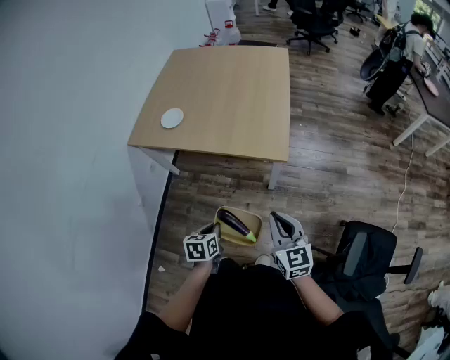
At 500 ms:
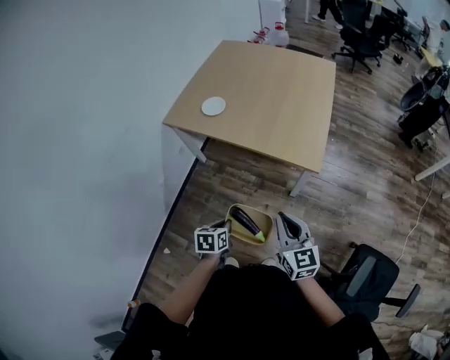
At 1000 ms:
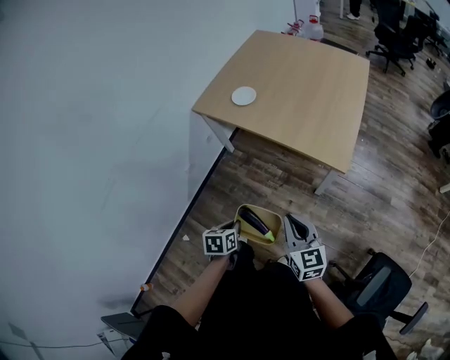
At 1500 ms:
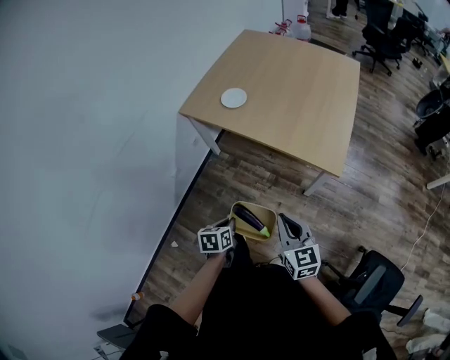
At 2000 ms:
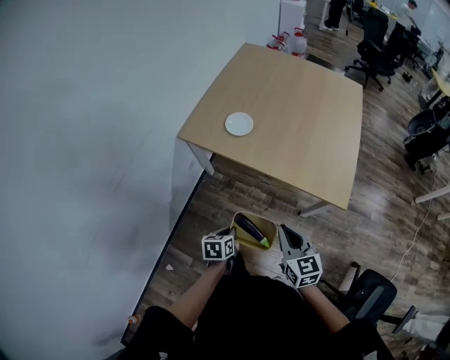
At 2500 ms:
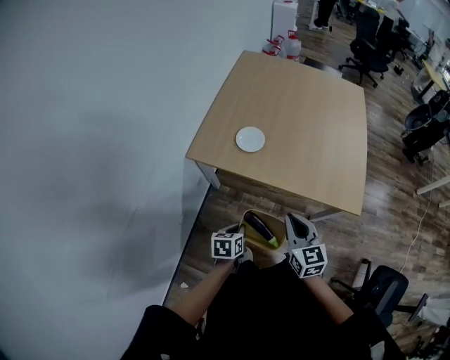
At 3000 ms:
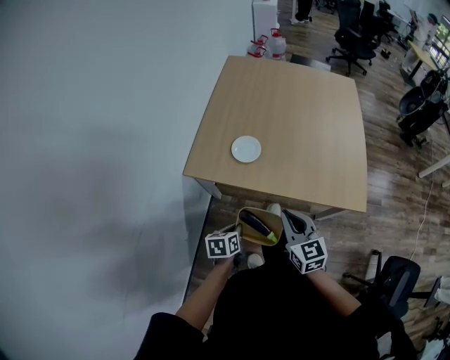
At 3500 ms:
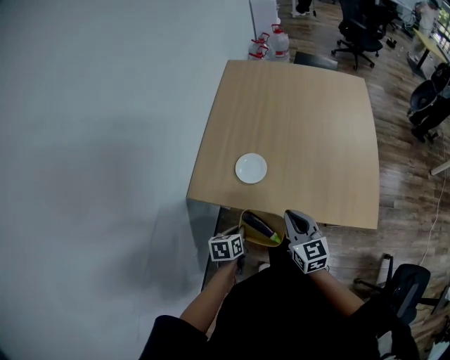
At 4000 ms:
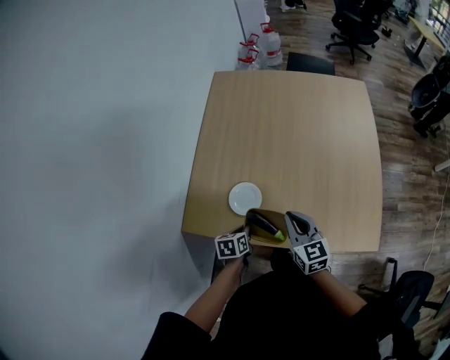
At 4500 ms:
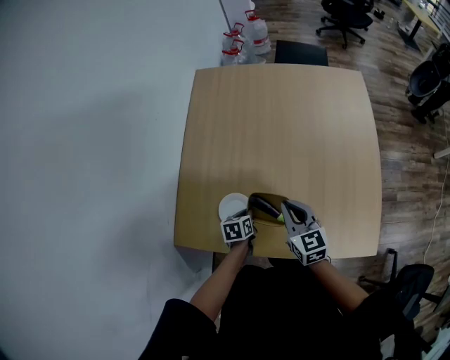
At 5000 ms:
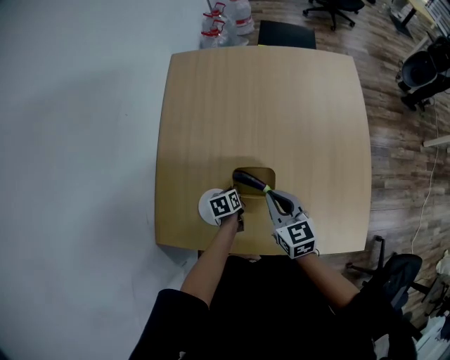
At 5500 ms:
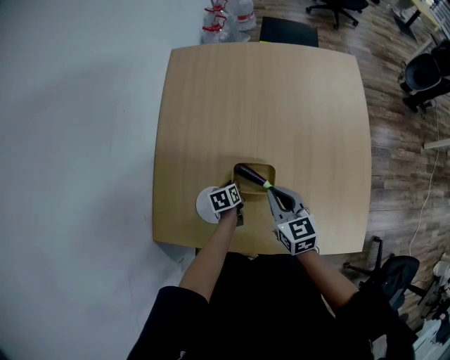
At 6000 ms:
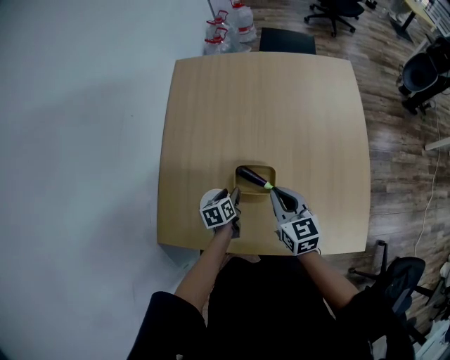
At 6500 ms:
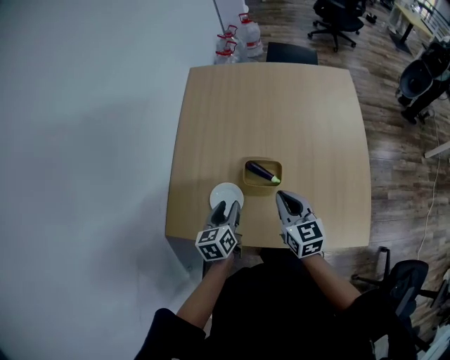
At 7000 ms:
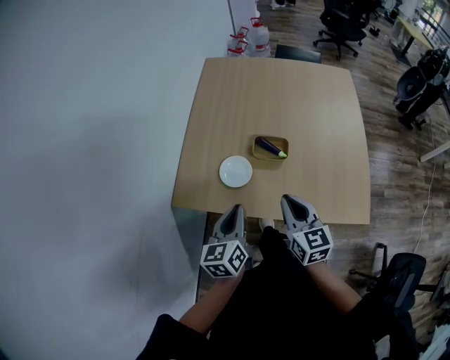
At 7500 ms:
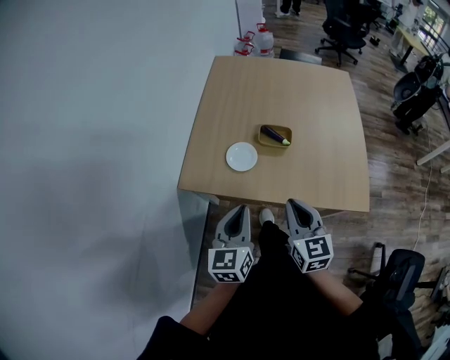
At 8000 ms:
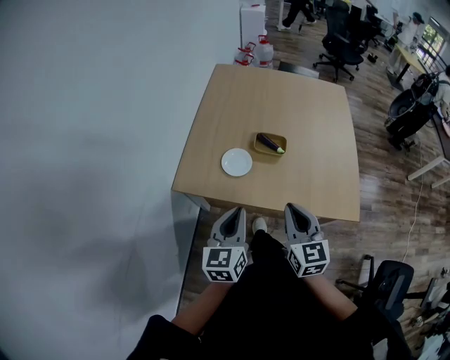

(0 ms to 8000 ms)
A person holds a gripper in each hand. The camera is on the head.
0 ms - 2000 ms: The grippers both shift to the left and forward by approximately 25 cm.
2000 ms - 4000 ms: Both grippers are carried forward, roughly 40 cm.
4000 ms - 6000 ms: The right gripper goes some 15 cm forward and to the right. The left gripper is displaced forward by about 20 cm, and opens its fingers.
6000 ms - 8000 ms: The left gripper is displaced backward and upward by about 40 cm, angles its fingers upward, by approximately 40 degrees, and closes up. Meanwhile the right gripper shifts about 30 cm backward.

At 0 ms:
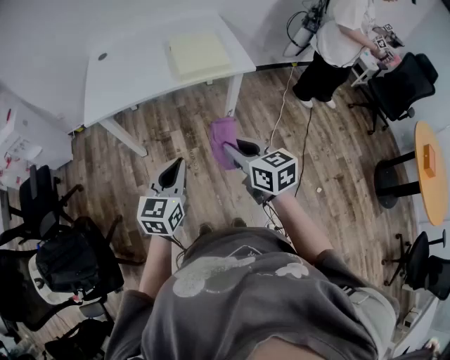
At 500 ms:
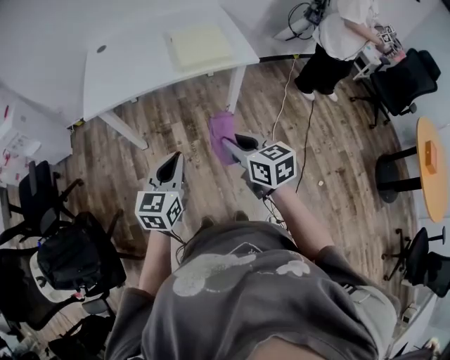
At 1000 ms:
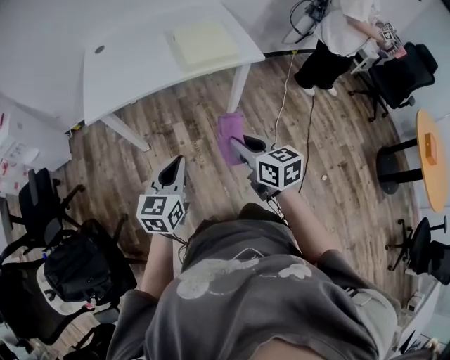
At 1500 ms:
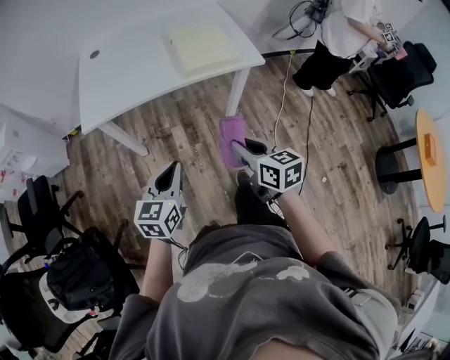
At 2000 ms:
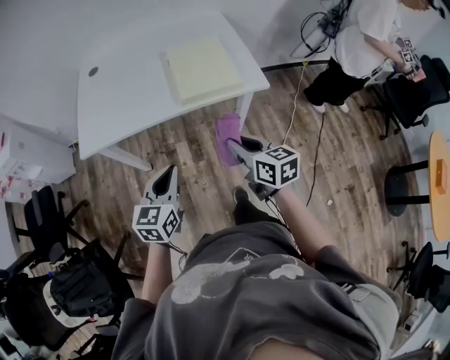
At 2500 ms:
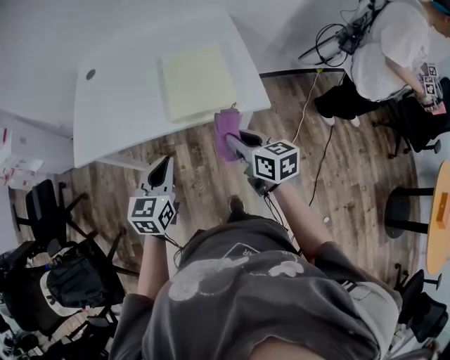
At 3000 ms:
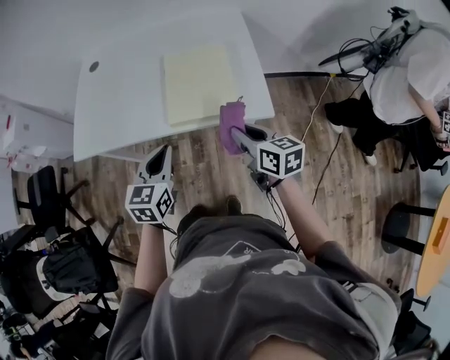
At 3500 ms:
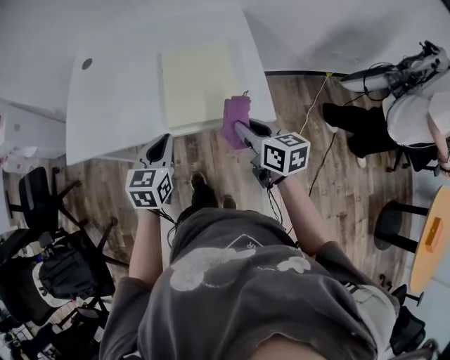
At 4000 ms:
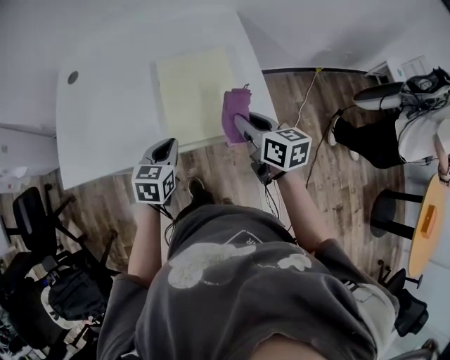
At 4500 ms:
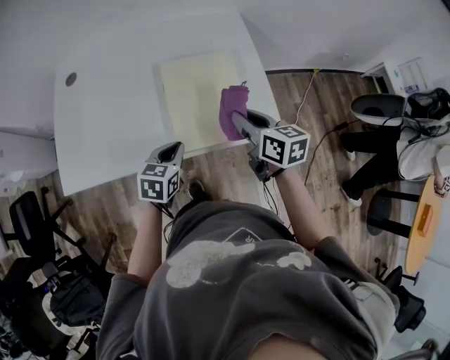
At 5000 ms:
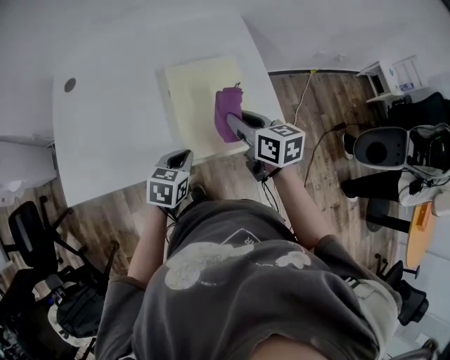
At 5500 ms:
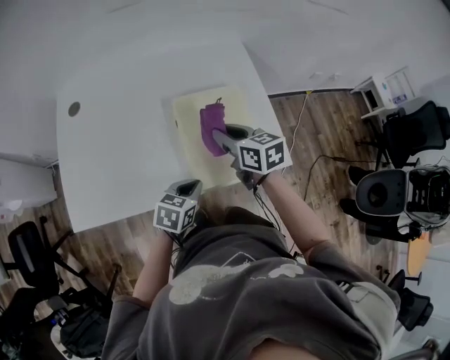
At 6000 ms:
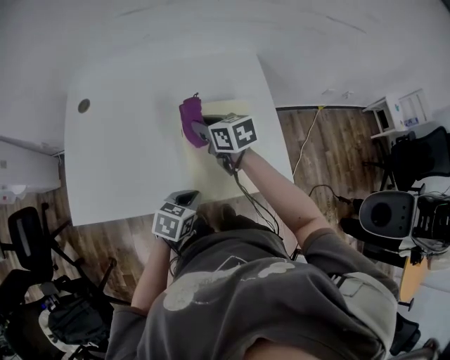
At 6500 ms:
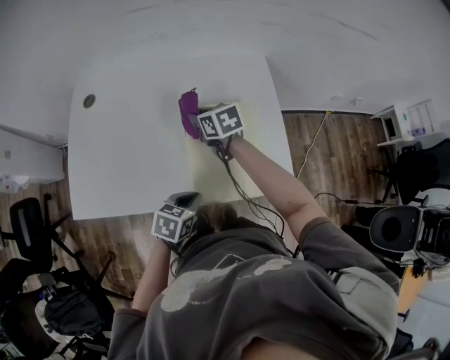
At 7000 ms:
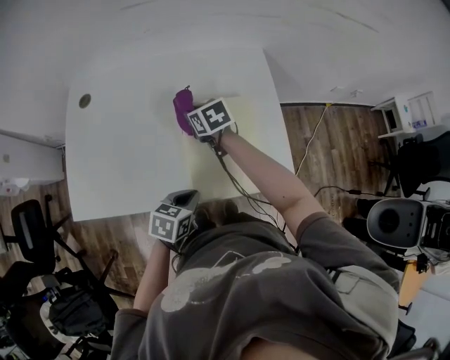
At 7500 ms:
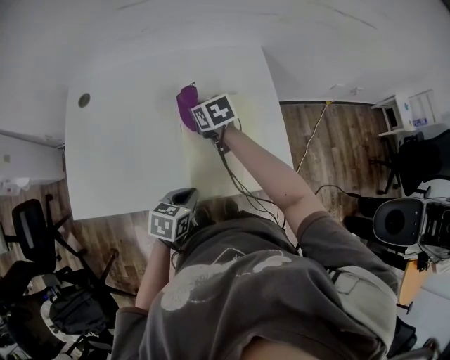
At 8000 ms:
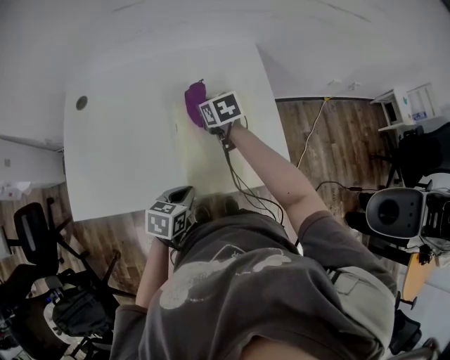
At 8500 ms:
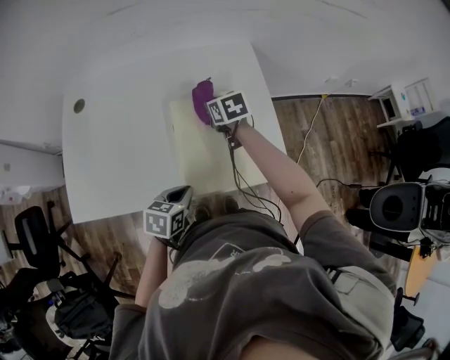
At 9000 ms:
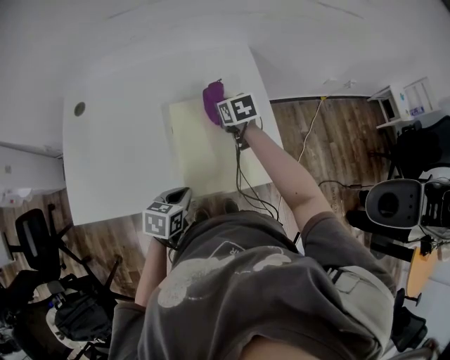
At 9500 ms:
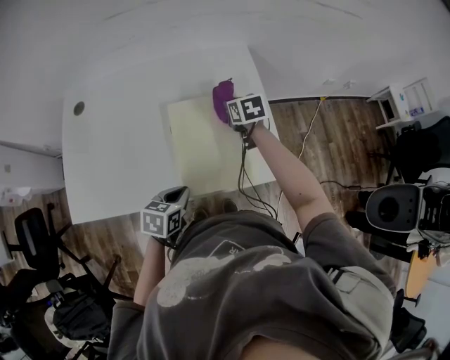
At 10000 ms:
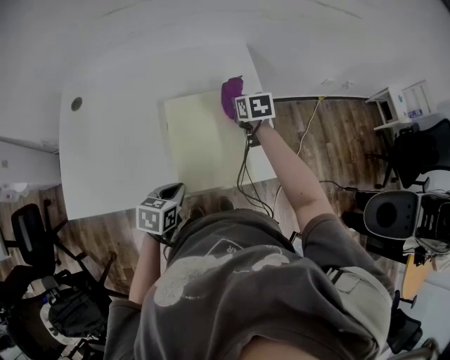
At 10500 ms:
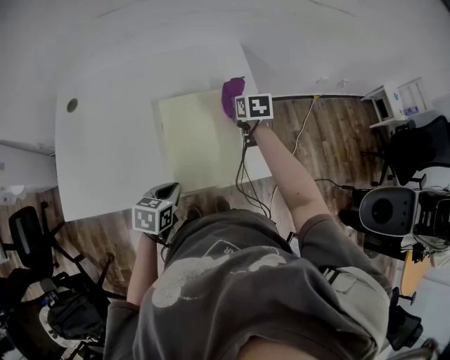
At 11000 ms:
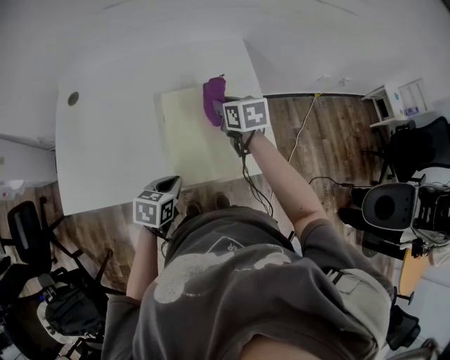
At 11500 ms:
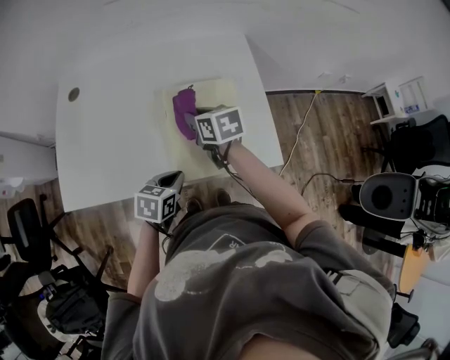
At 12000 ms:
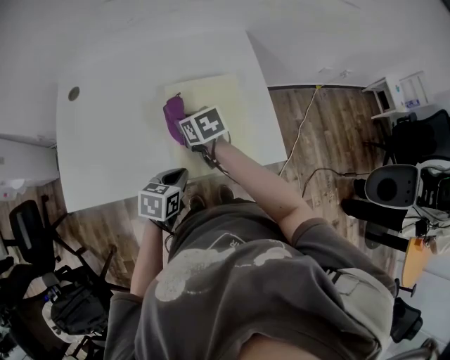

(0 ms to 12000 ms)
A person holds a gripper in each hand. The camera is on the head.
0 ms - 2000 ms: The grippers both shift forward by roughly 20 cm.
2000 ms - 4000 ms: The right gripper travels forward and to the right by roughly 30 cm; the left gripper is displaced forward by approximately 30 cm.
4000 ms - 6000 ms: The left gripper rotates roughly 20 degrees, while the right gripper goes roughly 25 cm to the left and forward.
6000 ms - 8000 ms: The right gripper moves downward and forward, approximately 10 cm.
8000 ms - 10000 ms: The right gripper heads to the right, covering some 15 cm.
10000 ms - 12000 ms: The right gripper shifts about 25 cm to the left and backward, and turns by some 20 degrees.

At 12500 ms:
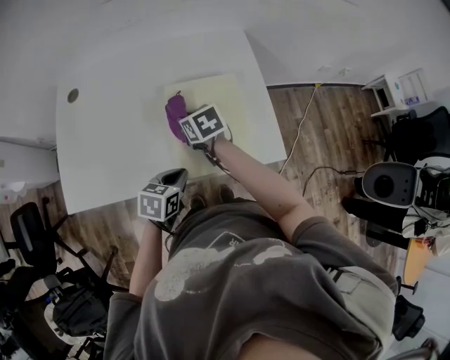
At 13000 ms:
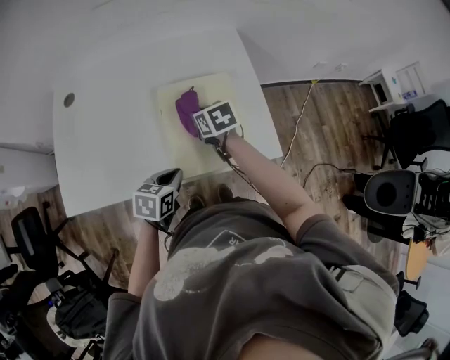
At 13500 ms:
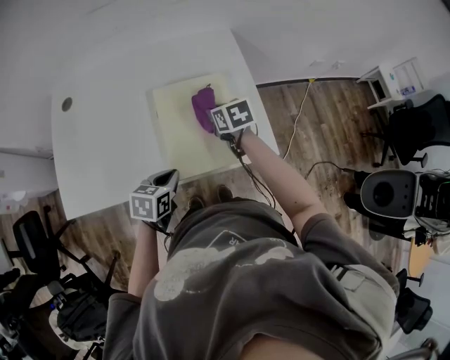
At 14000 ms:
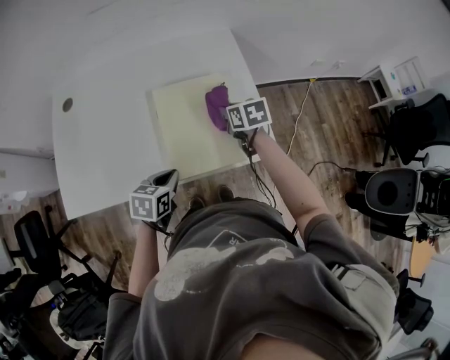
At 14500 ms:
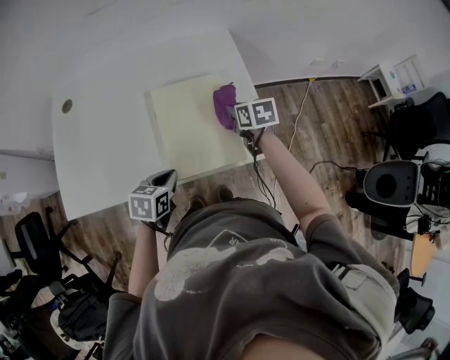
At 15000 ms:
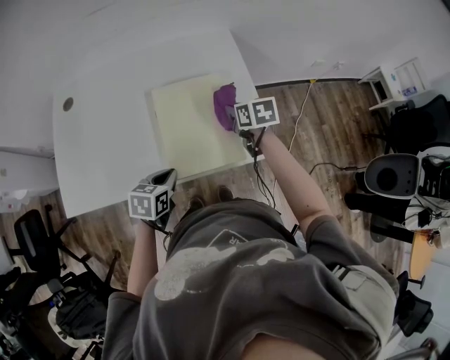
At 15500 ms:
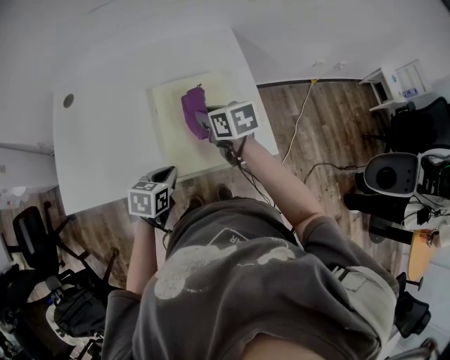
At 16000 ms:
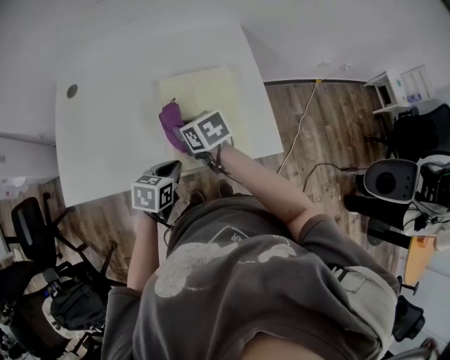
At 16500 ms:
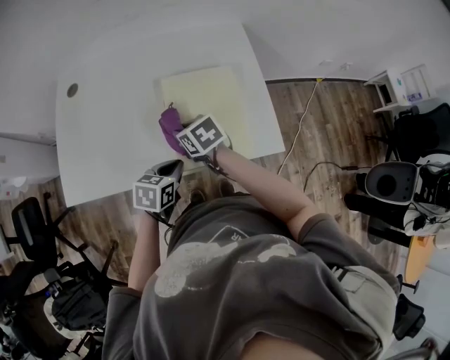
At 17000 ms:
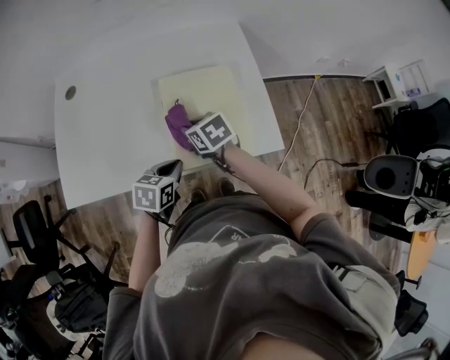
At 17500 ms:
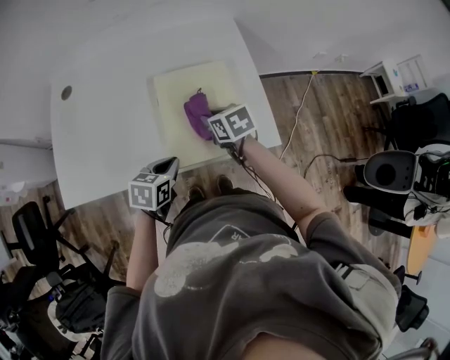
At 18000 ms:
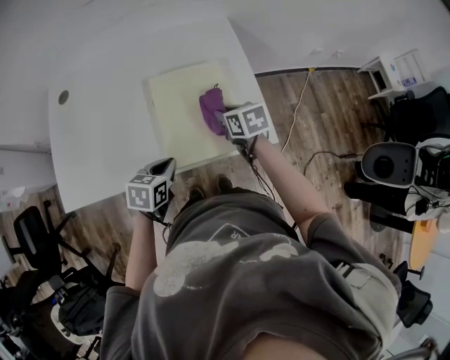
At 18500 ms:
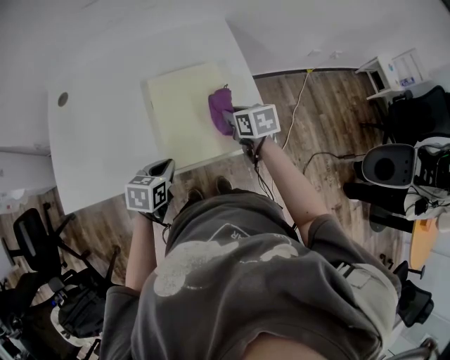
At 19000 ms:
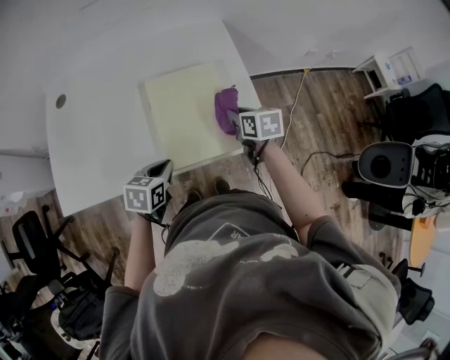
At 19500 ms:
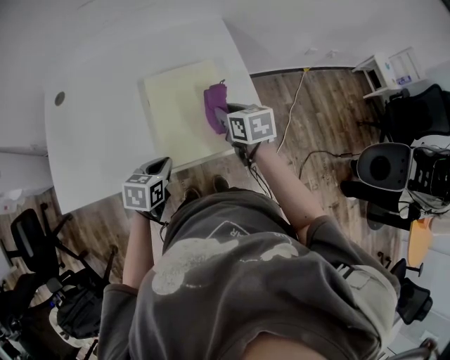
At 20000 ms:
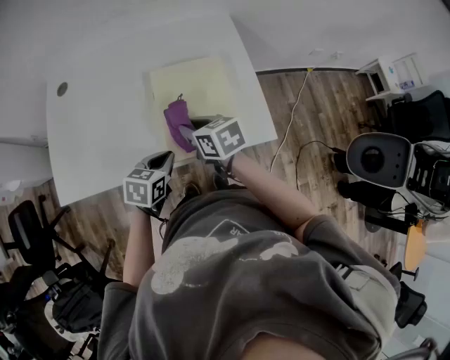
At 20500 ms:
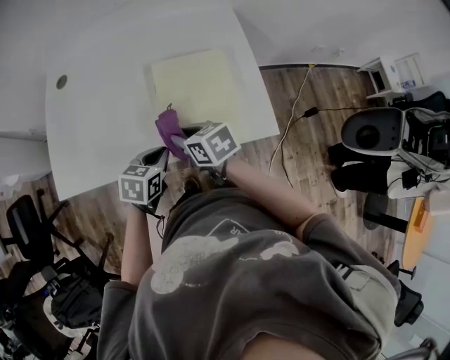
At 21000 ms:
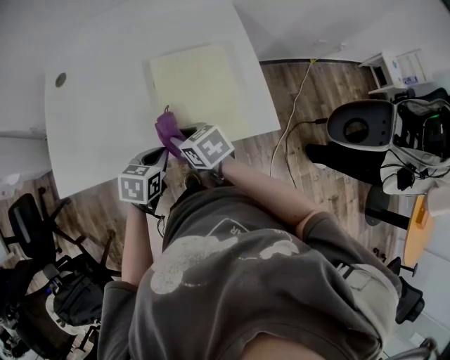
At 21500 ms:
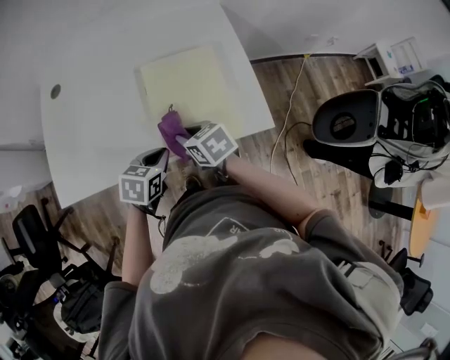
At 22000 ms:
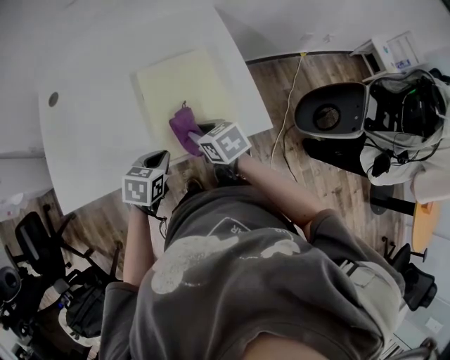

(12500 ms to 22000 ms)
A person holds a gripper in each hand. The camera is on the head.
12500 ms - 14500 ms: The right gripper heads to the right, covering approximately 20 cm.
14500 ms - 16500 ms: The right gripper travels to the left and backward by some 25 cm, and turns by some 30 degrees.
16500 ms - 18000 ms: The right gripper goes about 15 cm to the right.
18000 ms - 20000 ms: The right gripper moves to the left and backward, some 15 cm.
20000 ms - 22000 ms: The right gripper ends up roughly 5 cm from where it was.
